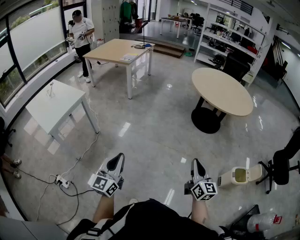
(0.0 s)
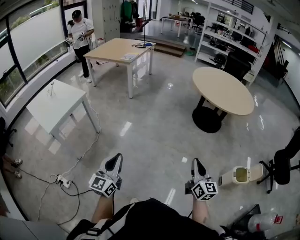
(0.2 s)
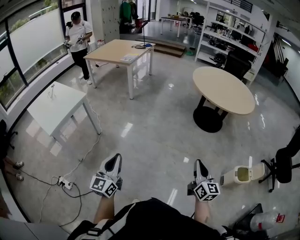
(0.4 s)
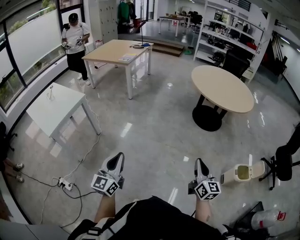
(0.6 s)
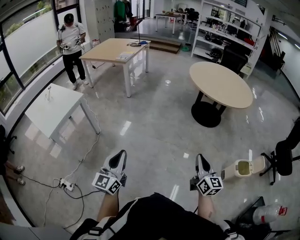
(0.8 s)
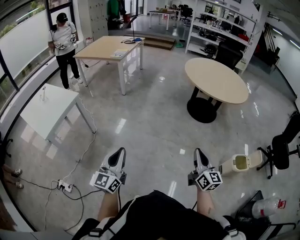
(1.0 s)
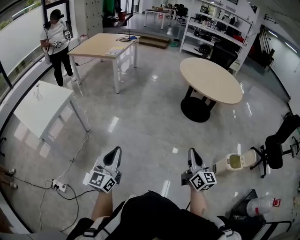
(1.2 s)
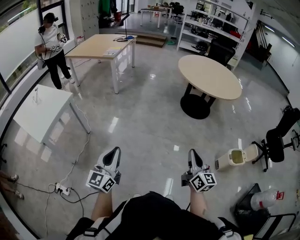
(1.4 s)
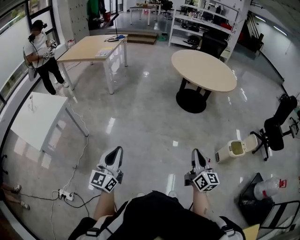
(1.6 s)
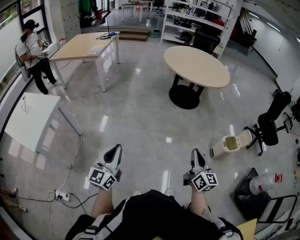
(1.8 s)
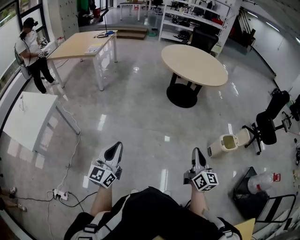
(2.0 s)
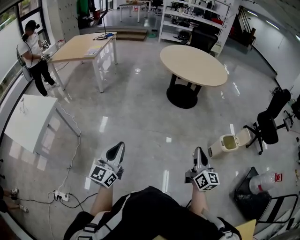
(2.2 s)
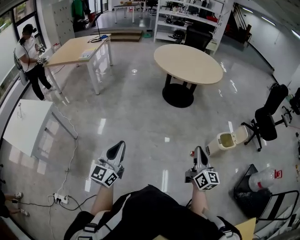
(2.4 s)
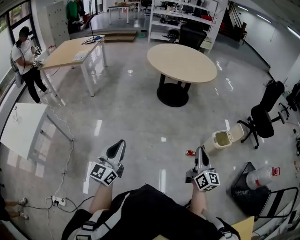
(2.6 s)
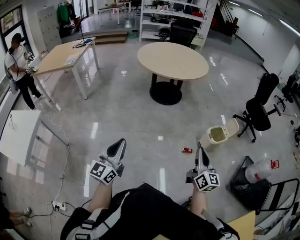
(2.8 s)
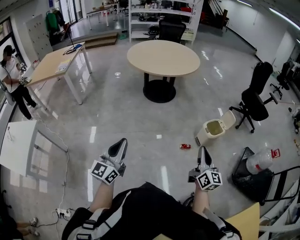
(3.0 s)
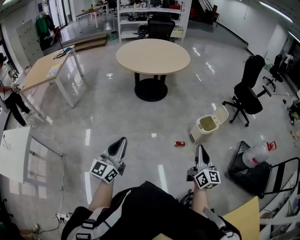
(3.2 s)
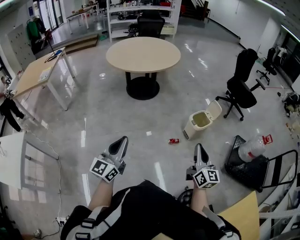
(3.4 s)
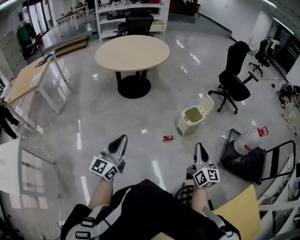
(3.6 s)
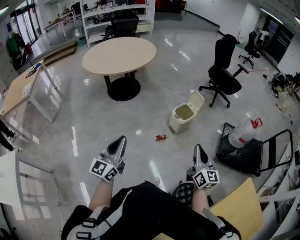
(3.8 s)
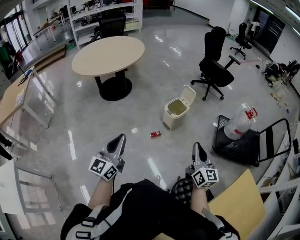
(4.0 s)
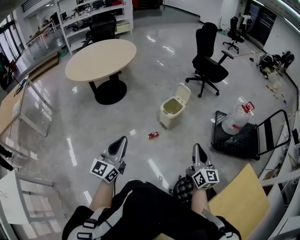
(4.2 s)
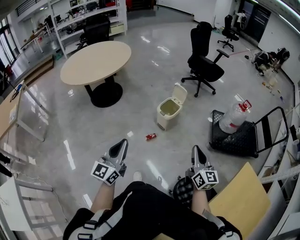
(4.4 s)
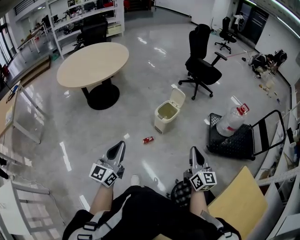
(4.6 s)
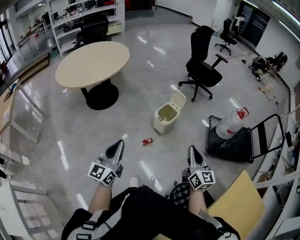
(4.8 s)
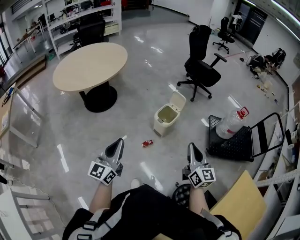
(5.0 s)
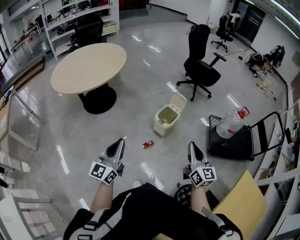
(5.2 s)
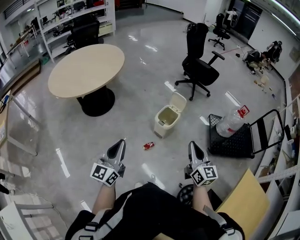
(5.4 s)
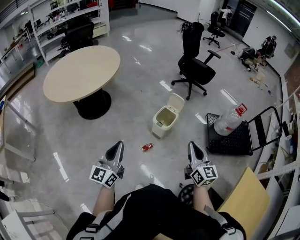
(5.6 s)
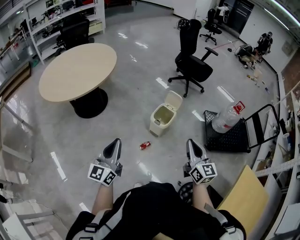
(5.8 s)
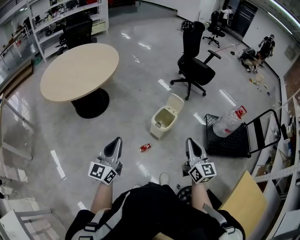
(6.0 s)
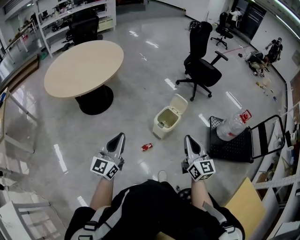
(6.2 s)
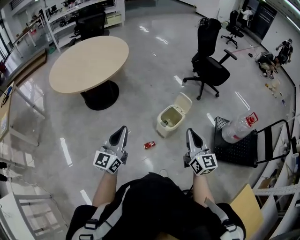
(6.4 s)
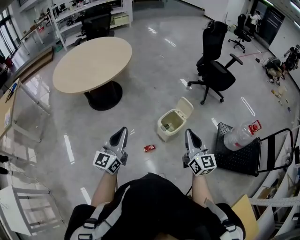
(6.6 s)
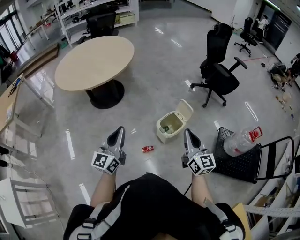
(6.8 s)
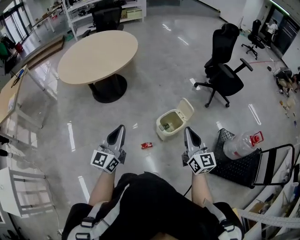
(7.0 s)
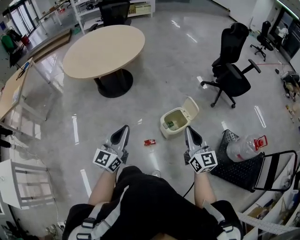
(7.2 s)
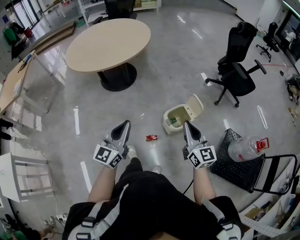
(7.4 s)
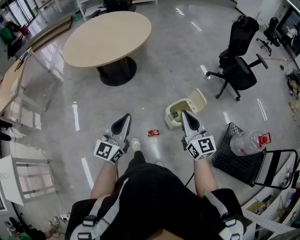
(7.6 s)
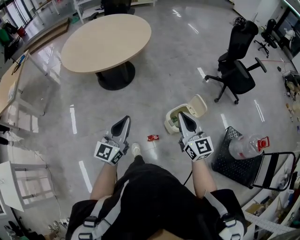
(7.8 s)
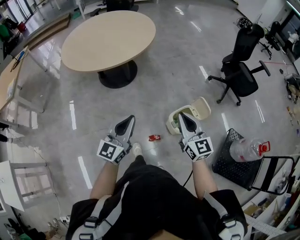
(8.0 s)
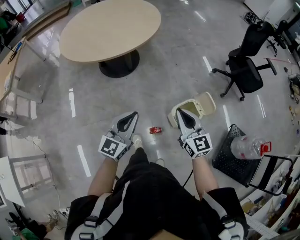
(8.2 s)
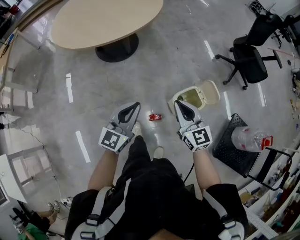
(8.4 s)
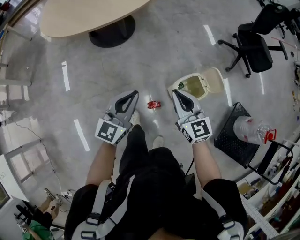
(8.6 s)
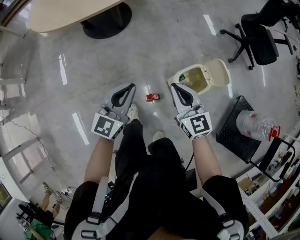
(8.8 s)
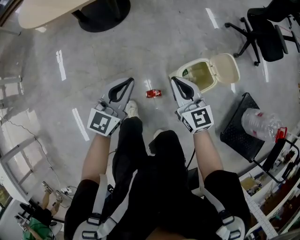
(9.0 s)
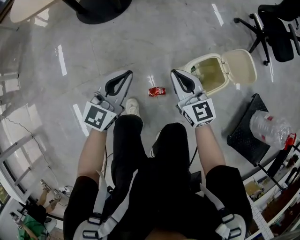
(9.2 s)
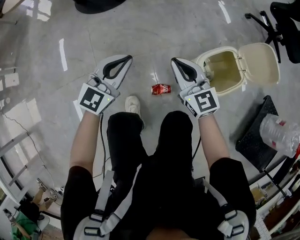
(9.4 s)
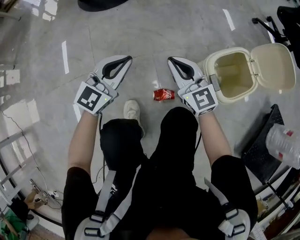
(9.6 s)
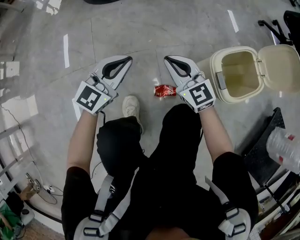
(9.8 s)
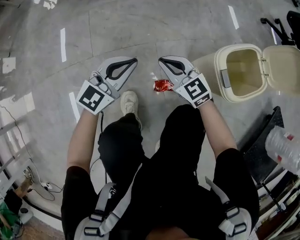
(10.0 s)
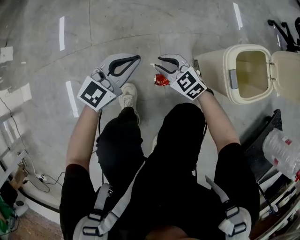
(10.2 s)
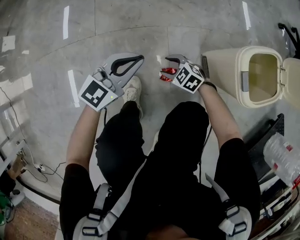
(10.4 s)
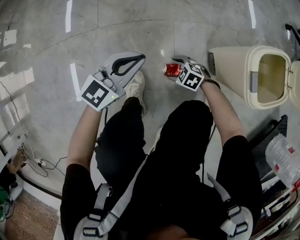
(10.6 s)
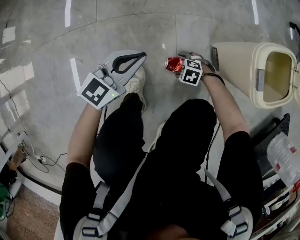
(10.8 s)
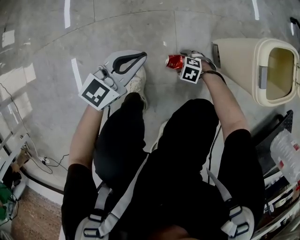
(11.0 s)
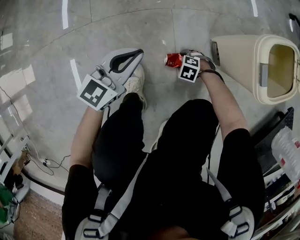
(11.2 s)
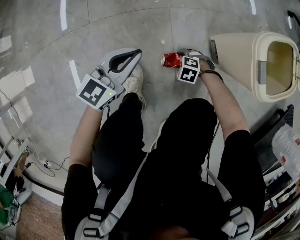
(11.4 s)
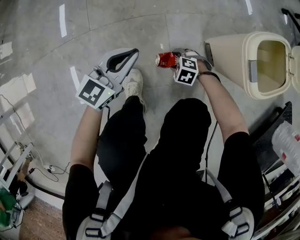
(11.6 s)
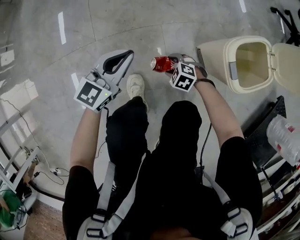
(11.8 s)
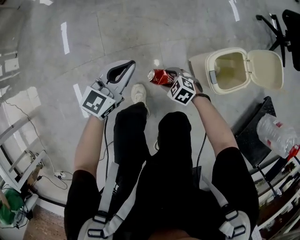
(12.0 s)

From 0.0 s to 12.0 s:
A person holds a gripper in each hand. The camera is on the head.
From 0.0 s to 1.6 s: There are only small adjustments of the grippers.
From 1.6 s to 3.0 s: The left gripper goes approximately 25 cm to the right and forward, and rotates some 20 degrees, while the right gripper heads to the right, covering some 25 cm, and changes its angle by roughly 20 degrees.
From 3.0 s to 4.4 s: The right gripper travels to the right by about 25 cm, and changes its angle by some 20 degrees. Meanwhile the left gripper goes roughly 30 cm to the right and forward, and swivels approximately 30 degrees.
From 4.4 s to 6.0 s: Both grippers travel together forward and to the left, some 20 cm.
From 6.0 s to 7.6 s: The right gripper shifts some 20 cm forward, and changes its angle by approximately 30 degrees; the left gripper heads forward and to the right, covering some 15 cm.
From 7.6 s to 9.0 s: Both grippers move downward and forward, about 30 cm.
From 9.0 s to 10.4 s: Both grippers move downward, roughly 50 cm. The right gripper points its fingers approximately 40 degrees further downward, and opens up.
From 10.4 s to 12.0 s: The grippers both shift upward by roughly 20 cm.

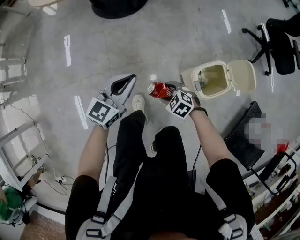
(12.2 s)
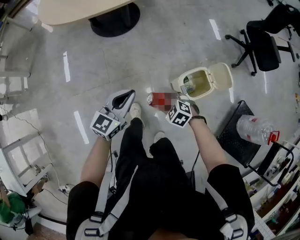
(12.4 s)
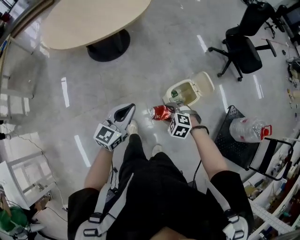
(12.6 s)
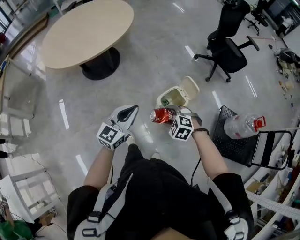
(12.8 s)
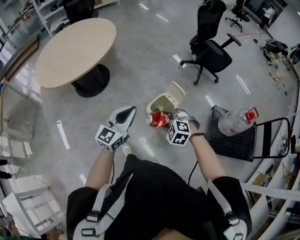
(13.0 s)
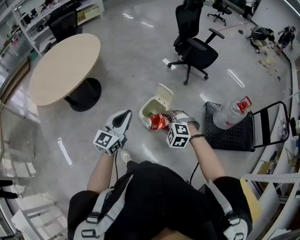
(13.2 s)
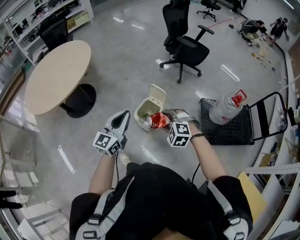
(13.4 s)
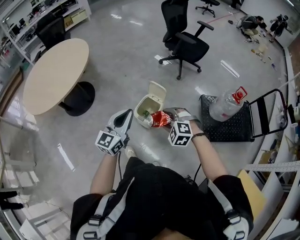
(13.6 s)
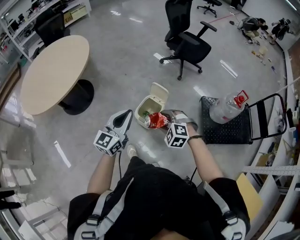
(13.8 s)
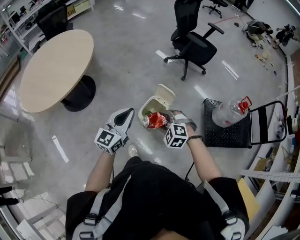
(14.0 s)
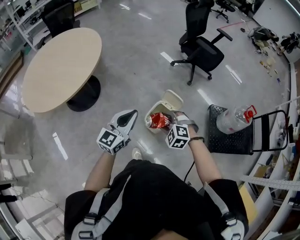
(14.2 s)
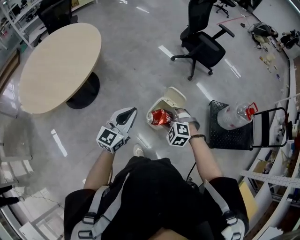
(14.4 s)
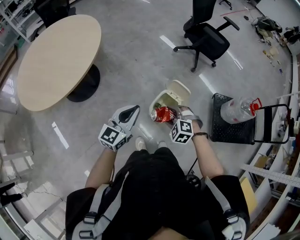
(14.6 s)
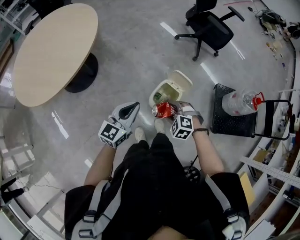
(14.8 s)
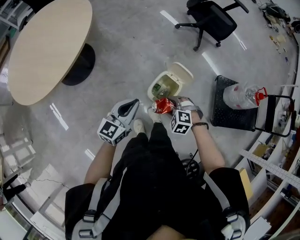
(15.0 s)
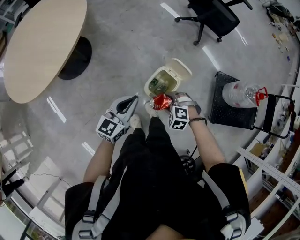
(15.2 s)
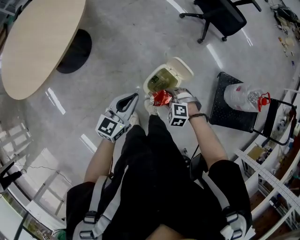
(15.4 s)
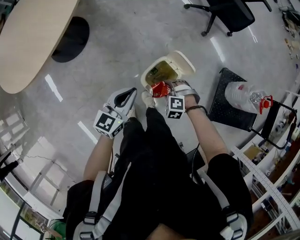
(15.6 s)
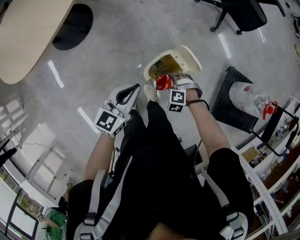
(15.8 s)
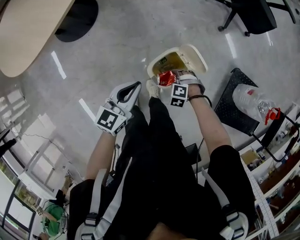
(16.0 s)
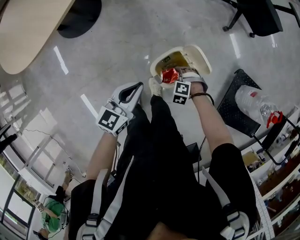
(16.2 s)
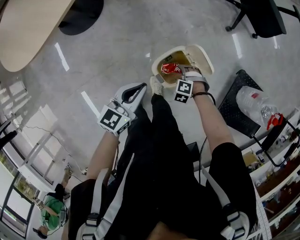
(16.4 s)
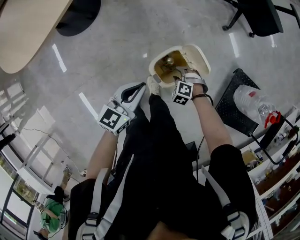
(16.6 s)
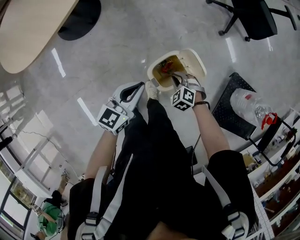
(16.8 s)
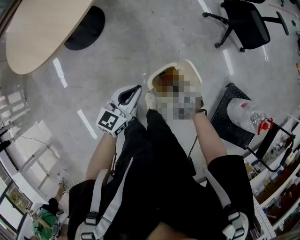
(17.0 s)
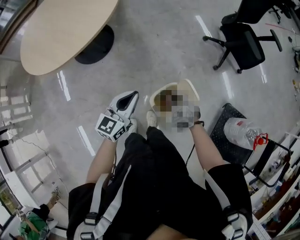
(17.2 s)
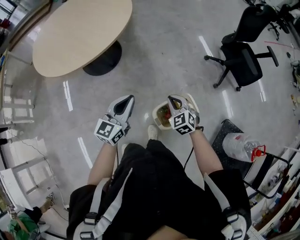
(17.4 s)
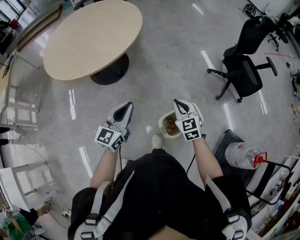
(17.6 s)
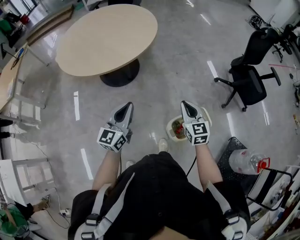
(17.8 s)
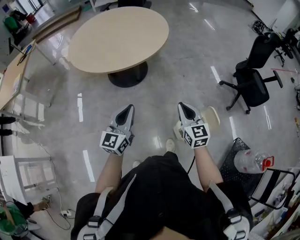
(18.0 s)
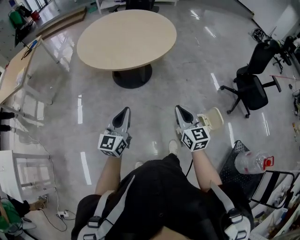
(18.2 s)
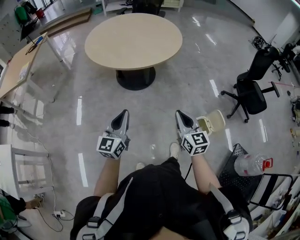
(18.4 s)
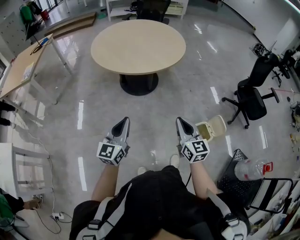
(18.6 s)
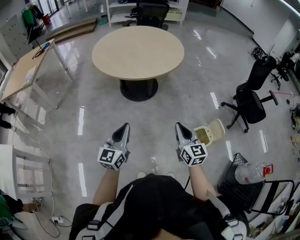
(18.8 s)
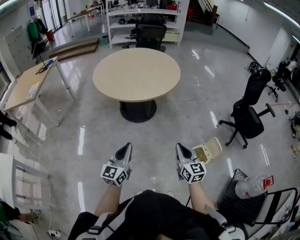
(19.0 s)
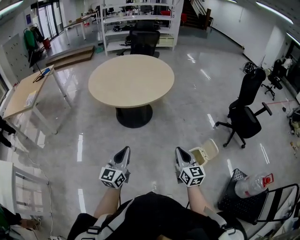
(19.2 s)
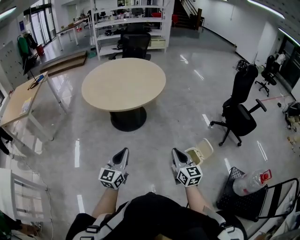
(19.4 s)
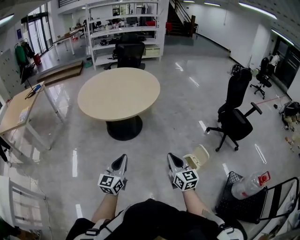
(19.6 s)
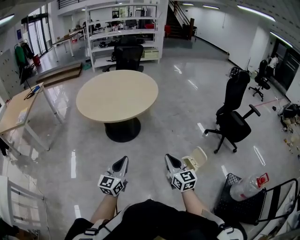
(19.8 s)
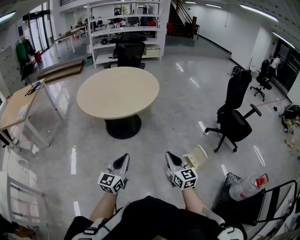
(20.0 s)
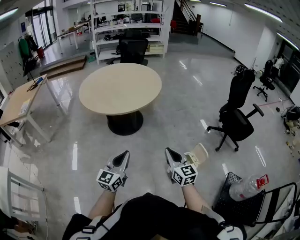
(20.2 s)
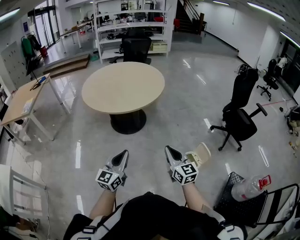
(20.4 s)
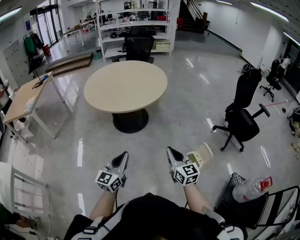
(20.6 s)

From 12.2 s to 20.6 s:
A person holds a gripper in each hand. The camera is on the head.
From 12.2 s to 13.6 s: Both grippers travel together upward, about 35 cm. The left gripper swivels about 30 degrees. The right gripper swivels approximately 40 degrees.
From 13.6 s to 15.0 s: The right gripper shifts roughly 20 cm downward, to the left and forward. The left gripper moves to the left, downward and forward, approximately 20 cm.
From 15.0 s to 16.4 s: The right gripper travels downward by about 20 cm, and swivels approximately 20 degrees. Meanwhile the left gripper travels downward by approximately 10 cm.
From 16.4 s to 17.8 s: The right gripper shifts approximately 40 cm upward, tips its fingers upward by approximately 60 degrees, and closes; the left gripper heads upward, covering approximately 20 cm, and turns by approximately 40 degrees.
From 17.8 s to 19.2 s: The two grippers go about 25 cm to the left and backward.
From 19.2 s to 20.6 s: The left gripper is displaced to the right by about 5 cm.

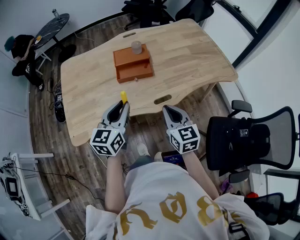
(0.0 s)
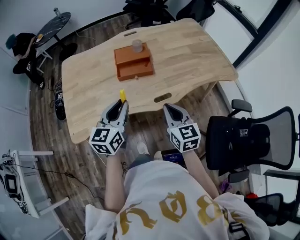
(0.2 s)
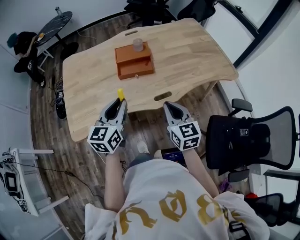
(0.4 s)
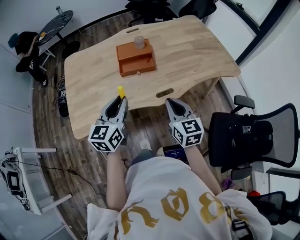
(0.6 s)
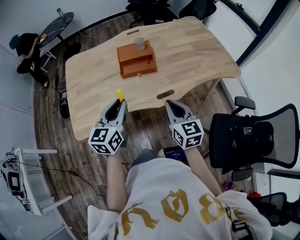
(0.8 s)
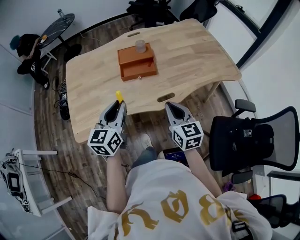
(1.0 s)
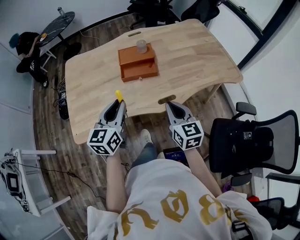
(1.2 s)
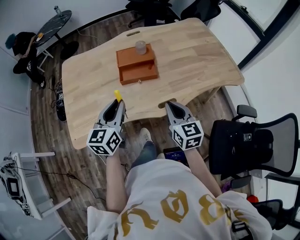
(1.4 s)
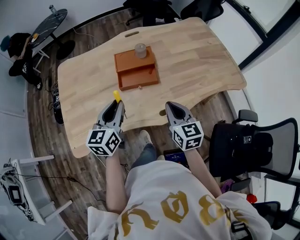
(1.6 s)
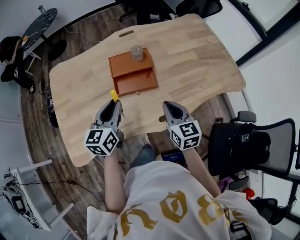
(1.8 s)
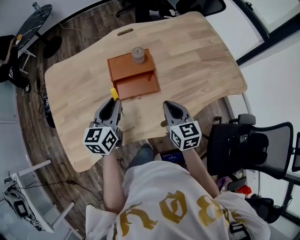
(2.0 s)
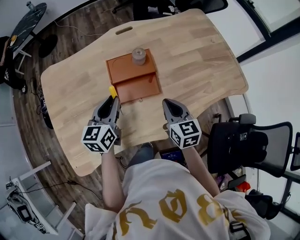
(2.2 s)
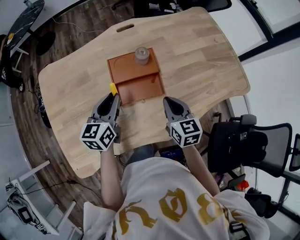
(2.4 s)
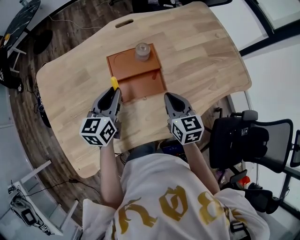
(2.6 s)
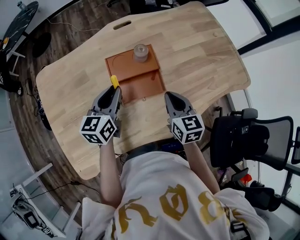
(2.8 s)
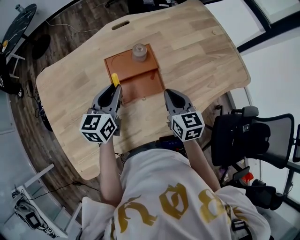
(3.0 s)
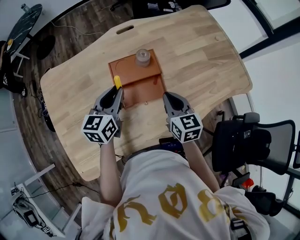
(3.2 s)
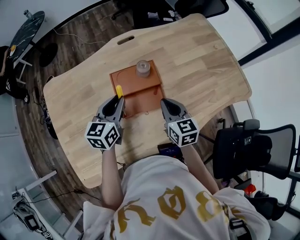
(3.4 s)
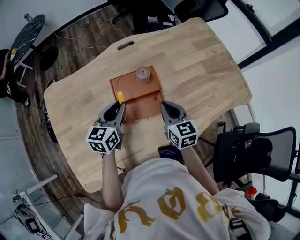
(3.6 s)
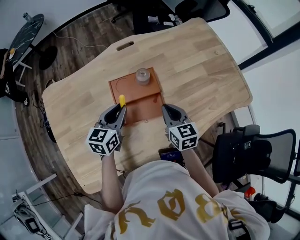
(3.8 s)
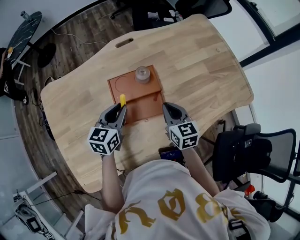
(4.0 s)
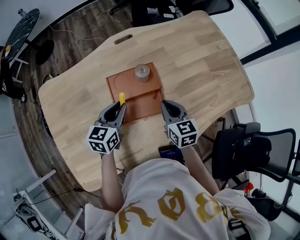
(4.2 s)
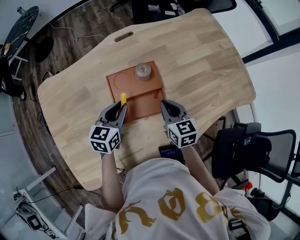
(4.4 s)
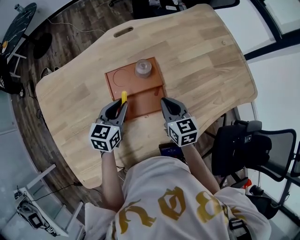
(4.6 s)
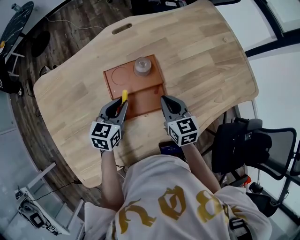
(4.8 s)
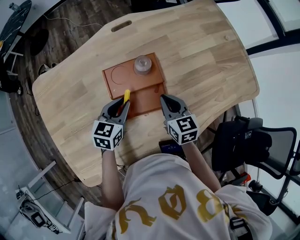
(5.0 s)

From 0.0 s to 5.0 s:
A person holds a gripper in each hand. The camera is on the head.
From 0.0 s to 1.6 s: Both grippers travel together forward, approximately 10 cm.
From 1.6 s to 3.4 s: Both grippers travel together forward, roughly 20 cm.
From 3.4 s to 5.0 s: The two grippers go approximately 10 cm downward.
